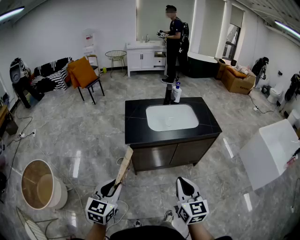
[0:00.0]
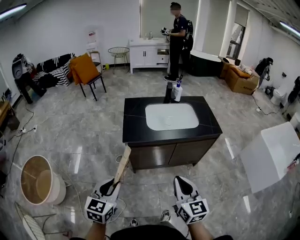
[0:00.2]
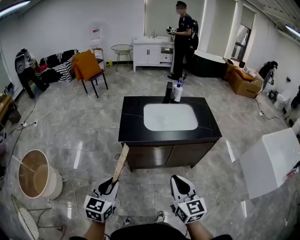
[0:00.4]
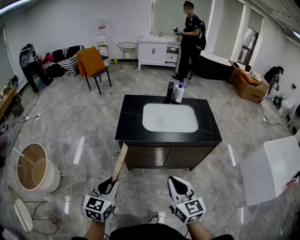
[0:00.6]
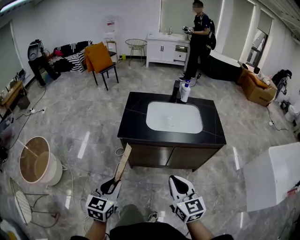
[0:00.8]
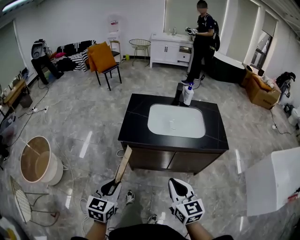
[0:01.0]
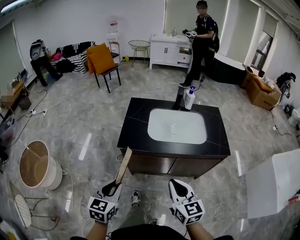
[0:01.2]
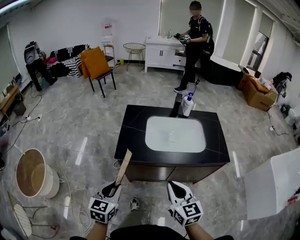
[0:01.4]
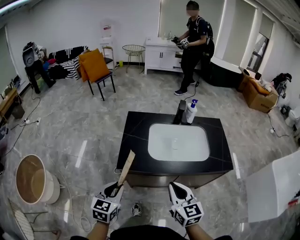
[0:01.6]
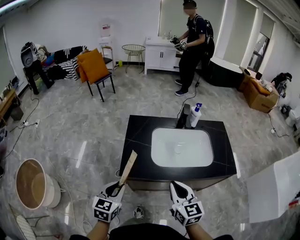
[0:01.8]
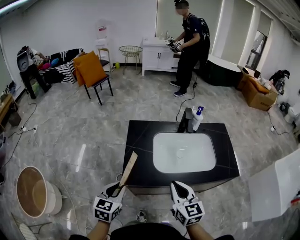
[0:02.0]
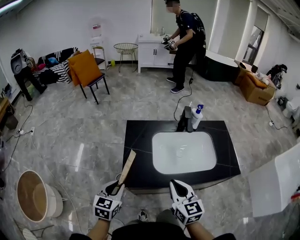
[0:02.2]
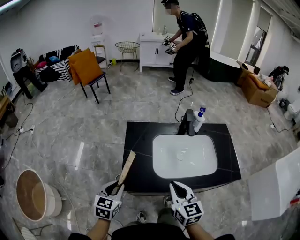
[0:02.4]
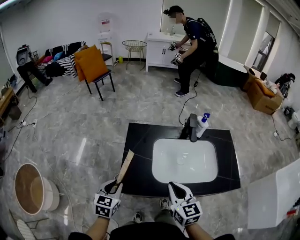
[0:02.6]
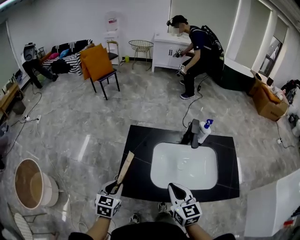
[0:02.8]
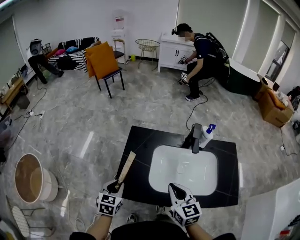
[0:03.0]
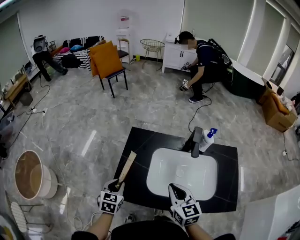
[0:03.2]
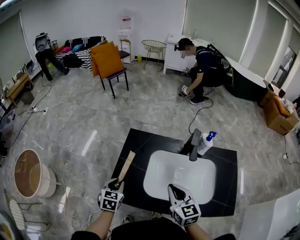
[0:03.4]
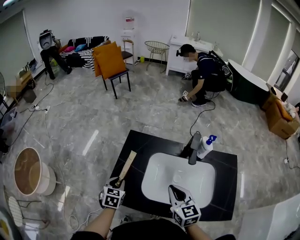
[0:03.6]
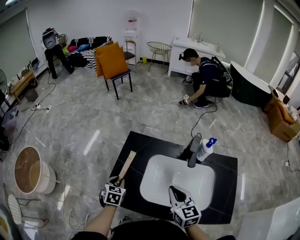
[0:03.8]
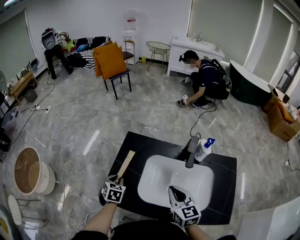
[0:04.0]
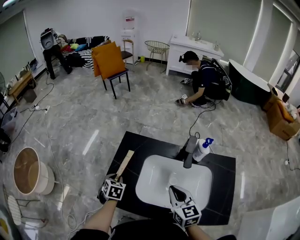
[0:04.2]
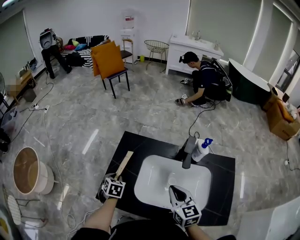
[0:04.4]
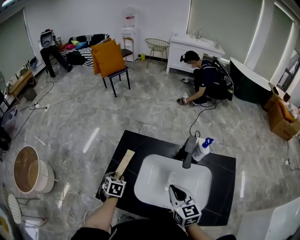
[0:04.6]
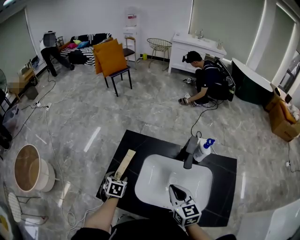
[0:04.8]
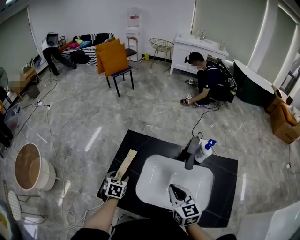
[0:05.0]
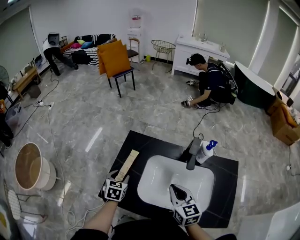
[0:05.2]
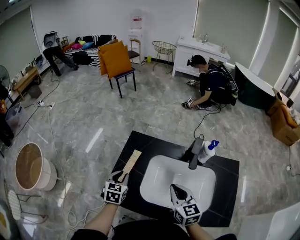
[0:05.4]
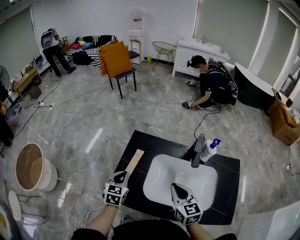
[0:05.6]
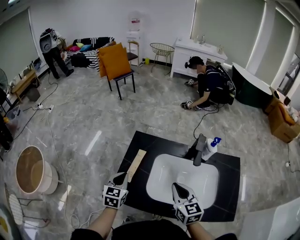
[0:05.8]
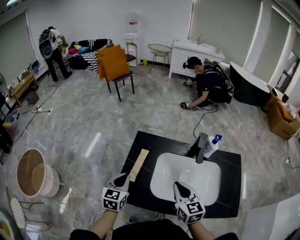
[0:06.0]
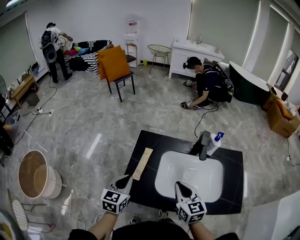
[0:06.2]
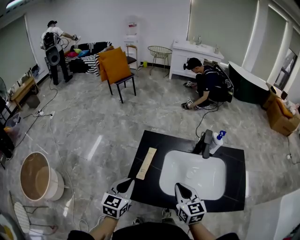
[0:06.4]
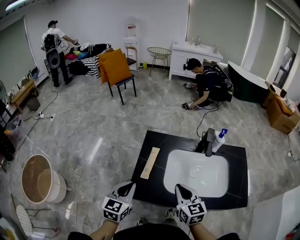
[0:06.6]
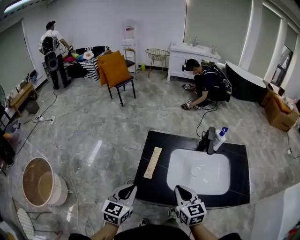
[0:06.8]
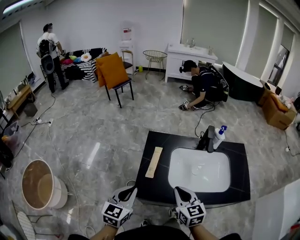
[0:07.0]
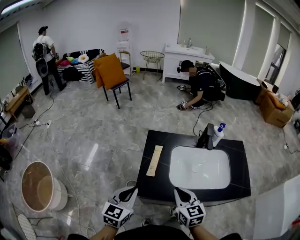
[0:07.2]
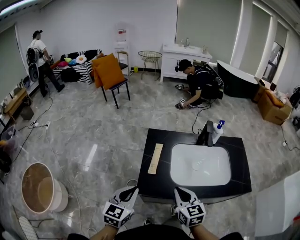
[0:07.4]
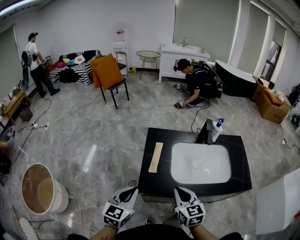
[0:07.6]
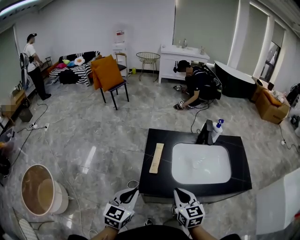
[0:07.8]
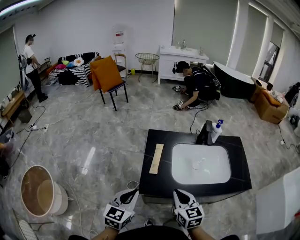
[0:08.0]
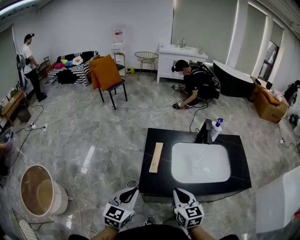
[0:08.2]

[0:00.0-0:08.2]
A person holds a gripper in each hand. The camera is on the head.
0:00.0 to 0:01.6: The grippers both shift forward by about 25 cm.
0:01.6 to 0:03.2: The right gripper heads forward, covering some 25 cm. Meanwhile the left gripper is displaced forward and downward by roughly 25 cm.
0:03.2 to 0:05.0: The right gripper heads to the right, covering about 5 cm; the left gripper is displaced forward, downward and to the right by some 10 cm, and opens up.
0:05.0 to 0:06.6: The left gripper moves upward, backward and to the left, about 20 cm, turns by some 30 degrees, and closes. Meanwhile the right gripper heads to the left and backward, covering approximately 15 cm.
0:06.6 to 0:08.2: The right gripper moves backward and to the left, approximately 10 cm; the left gripper shifts about 10 cm backward.

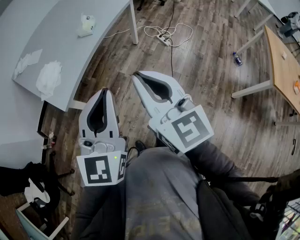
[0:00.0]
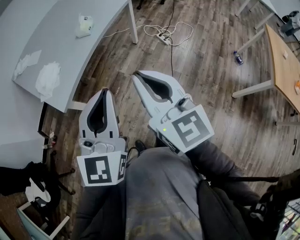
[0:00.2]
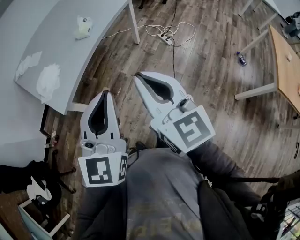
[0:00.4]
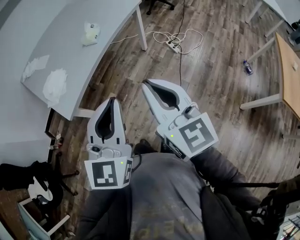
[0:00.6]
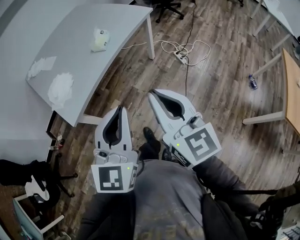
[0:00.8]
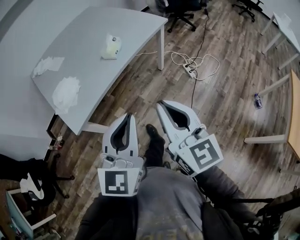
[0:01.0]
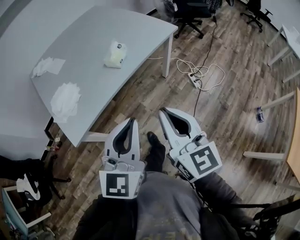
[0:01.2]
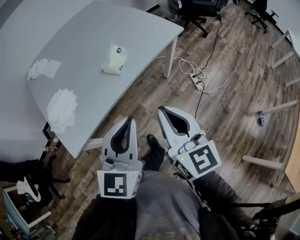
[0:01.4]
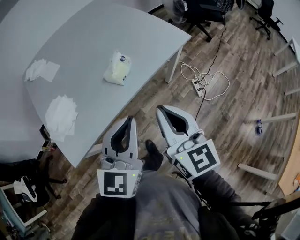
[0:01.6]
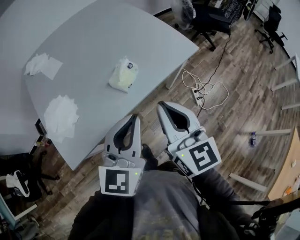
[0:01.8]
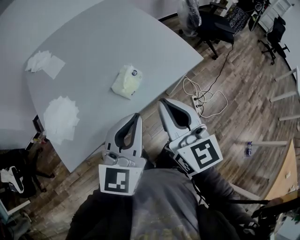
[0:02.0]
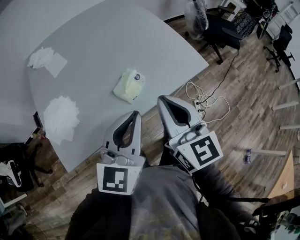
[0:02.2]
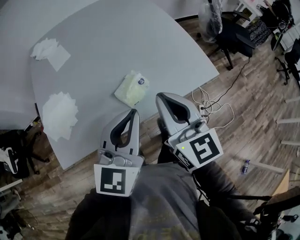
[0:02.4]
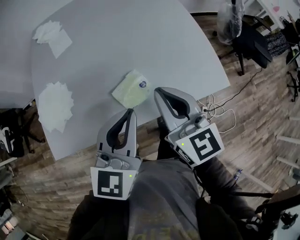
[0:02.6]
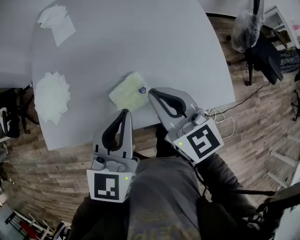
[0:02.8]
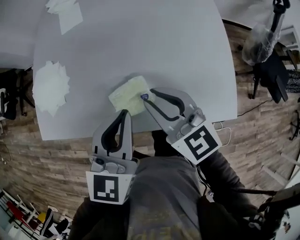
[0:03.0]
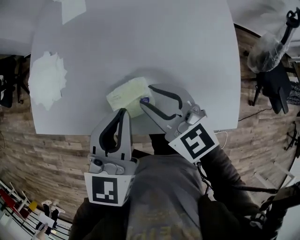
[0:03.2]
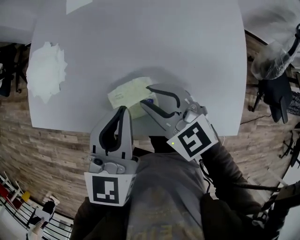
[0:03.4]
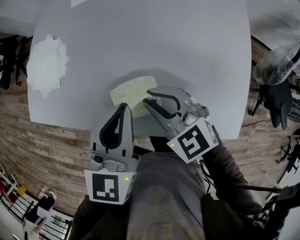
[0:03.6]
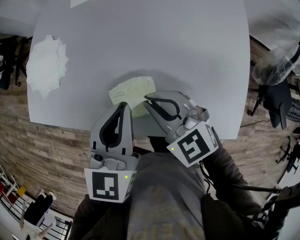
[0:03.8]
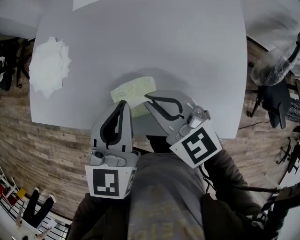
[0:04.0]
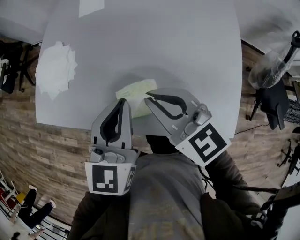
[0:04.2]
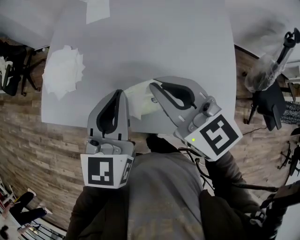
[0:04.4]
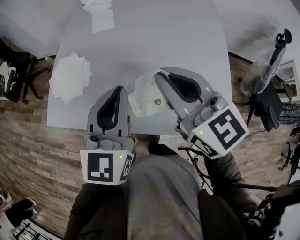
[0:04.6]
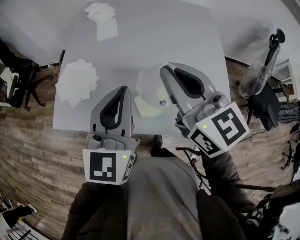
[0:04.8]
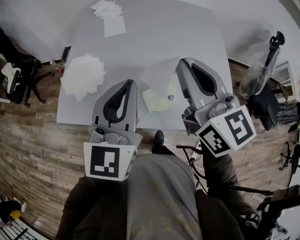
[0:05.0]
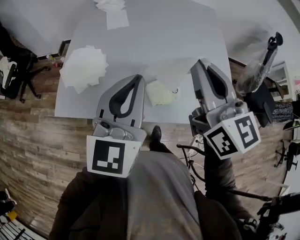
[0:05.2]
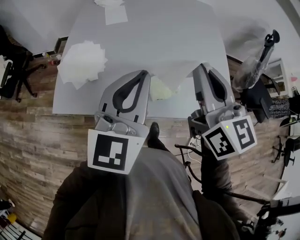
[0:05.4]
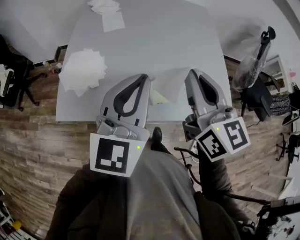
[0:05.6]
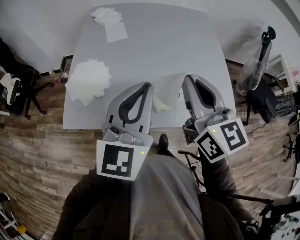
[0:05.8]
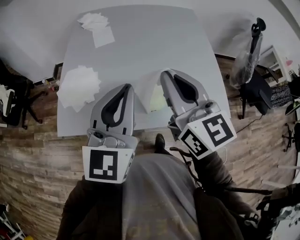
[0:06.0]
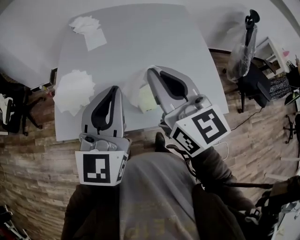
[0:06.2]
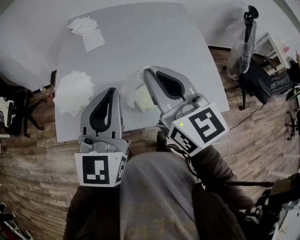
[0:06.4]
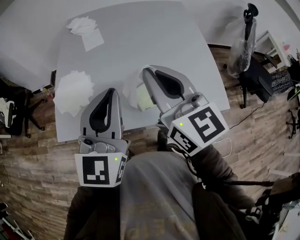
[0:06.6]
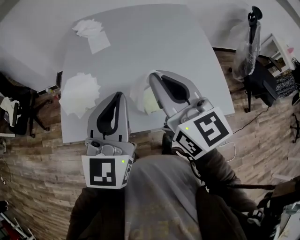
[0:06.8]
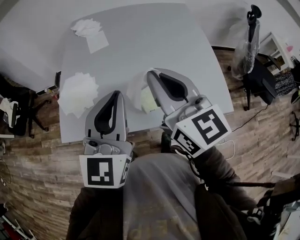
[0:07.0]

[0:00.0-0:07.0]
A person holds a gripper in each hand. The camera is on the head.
0:00.0 to 0:01.4: Both grippers travel together forward, approximately 30 cm.
0:01.4 to 0:02.8: The right gripper moves some 40 cm, and turns by roughly 50 degrees, while the left gripper moves approximately 35 cm, and turns by about 40 degrees.
0:02.8 to 0:04.2: The left gripper shifts by about 10 cm, and changes its angle by about 20 degrees. Meanwhile the right gripper travels downward and back again, some 10 cm each way, swivels approximately 30 degrees, and opens, then closes again.
0:04.2 to 0:05.6: Both grippers travel together upward, about 15 cm. The right gripper rotates some 40 degrees; the left gripper rotates some 30 degrees.
0:05.6 to 0:07.0: The grippers stay close to where they were, moving slightly.

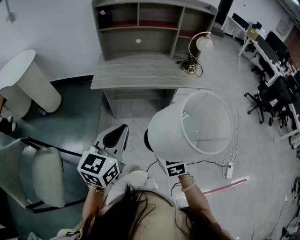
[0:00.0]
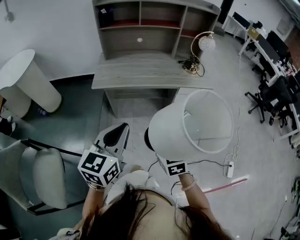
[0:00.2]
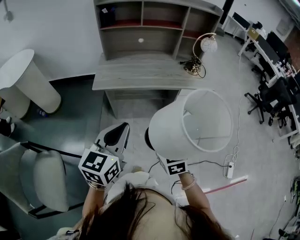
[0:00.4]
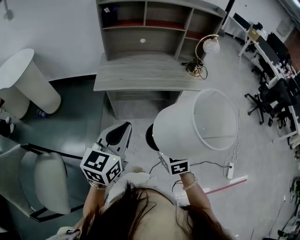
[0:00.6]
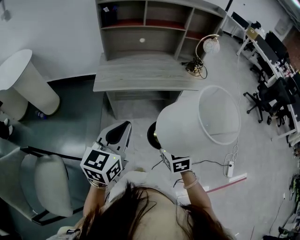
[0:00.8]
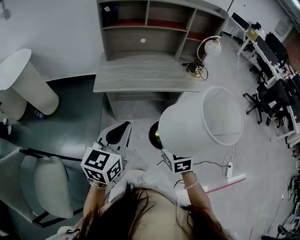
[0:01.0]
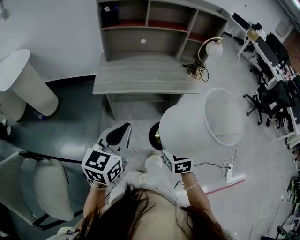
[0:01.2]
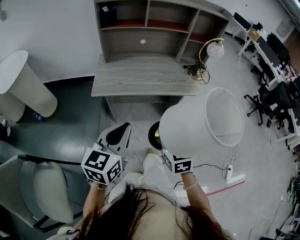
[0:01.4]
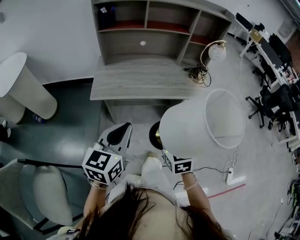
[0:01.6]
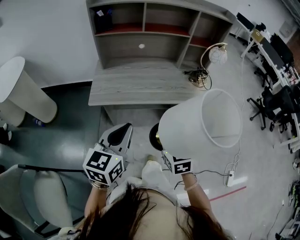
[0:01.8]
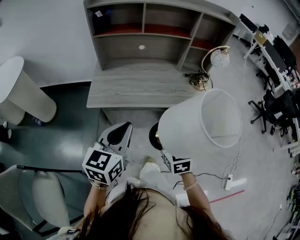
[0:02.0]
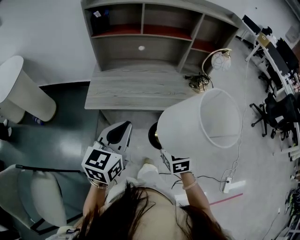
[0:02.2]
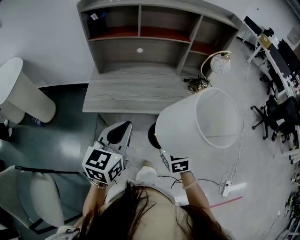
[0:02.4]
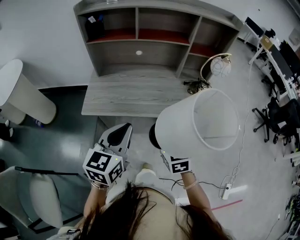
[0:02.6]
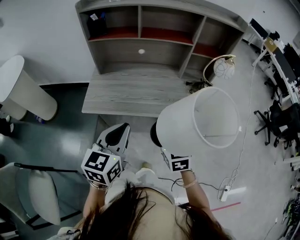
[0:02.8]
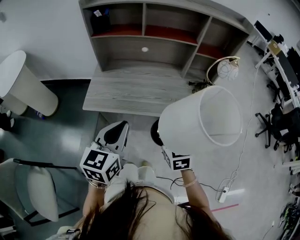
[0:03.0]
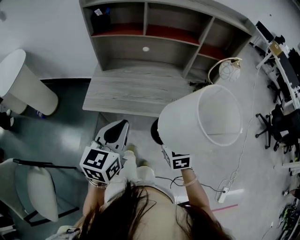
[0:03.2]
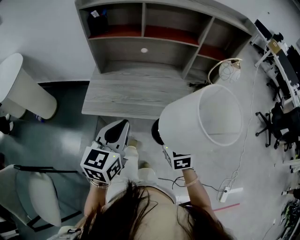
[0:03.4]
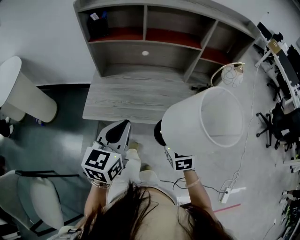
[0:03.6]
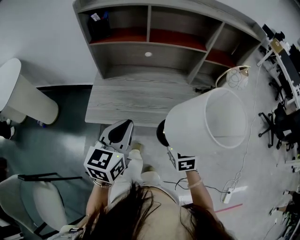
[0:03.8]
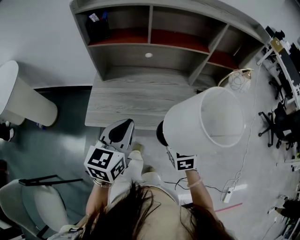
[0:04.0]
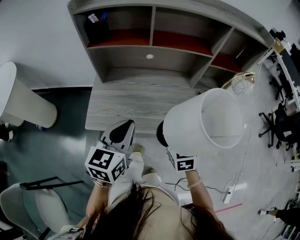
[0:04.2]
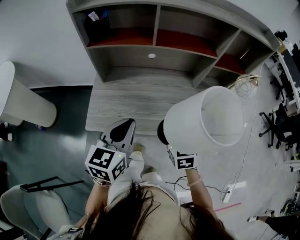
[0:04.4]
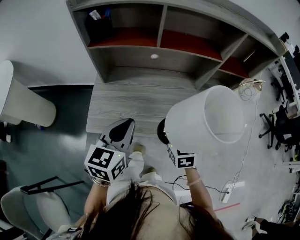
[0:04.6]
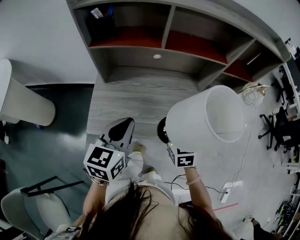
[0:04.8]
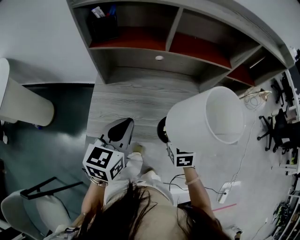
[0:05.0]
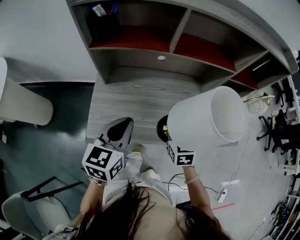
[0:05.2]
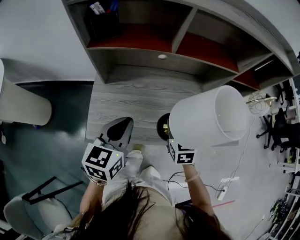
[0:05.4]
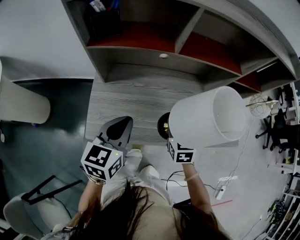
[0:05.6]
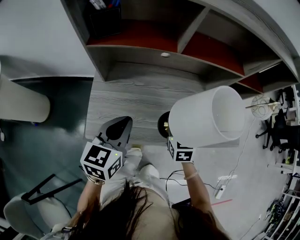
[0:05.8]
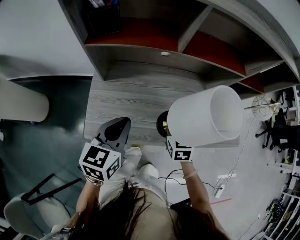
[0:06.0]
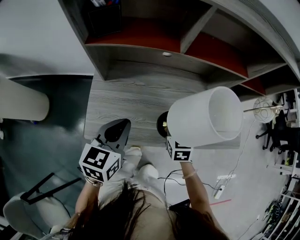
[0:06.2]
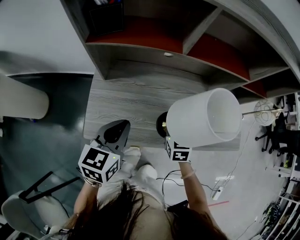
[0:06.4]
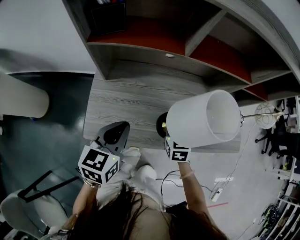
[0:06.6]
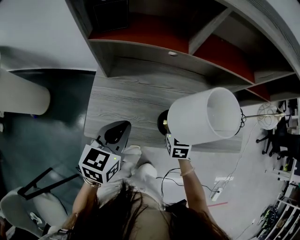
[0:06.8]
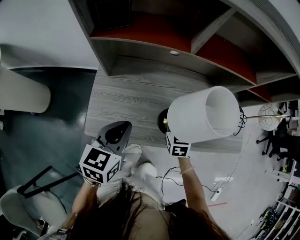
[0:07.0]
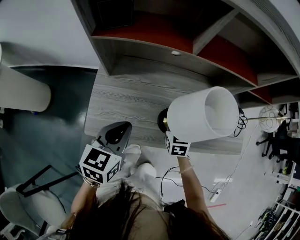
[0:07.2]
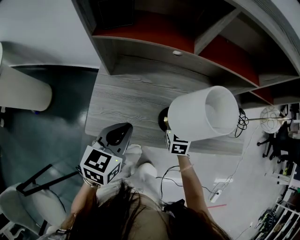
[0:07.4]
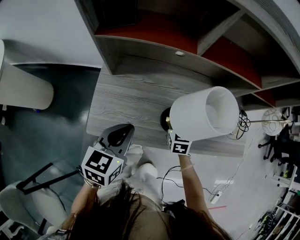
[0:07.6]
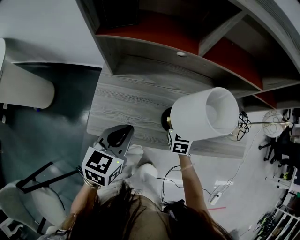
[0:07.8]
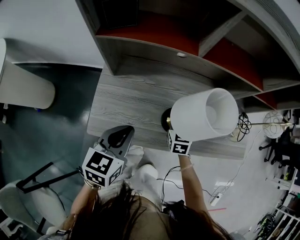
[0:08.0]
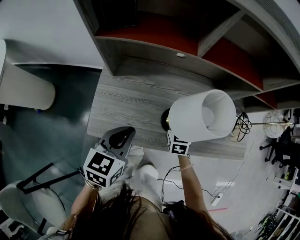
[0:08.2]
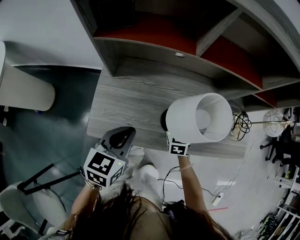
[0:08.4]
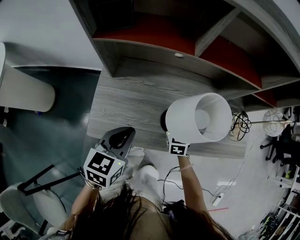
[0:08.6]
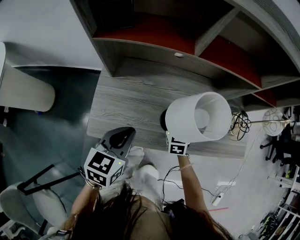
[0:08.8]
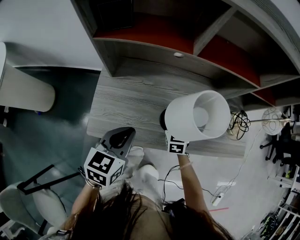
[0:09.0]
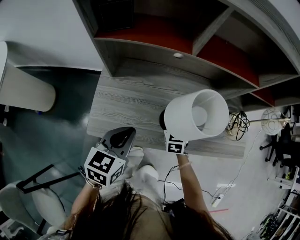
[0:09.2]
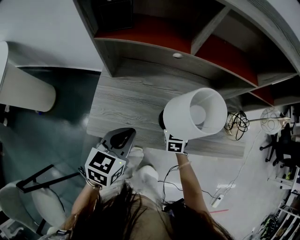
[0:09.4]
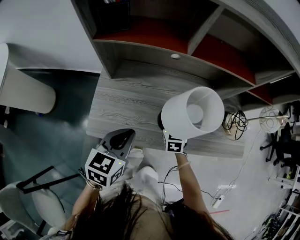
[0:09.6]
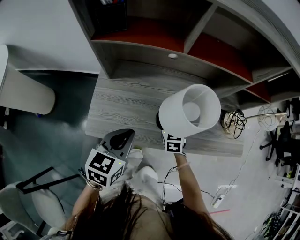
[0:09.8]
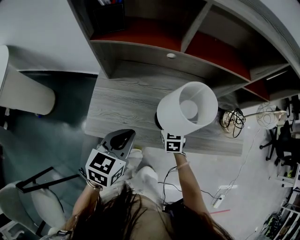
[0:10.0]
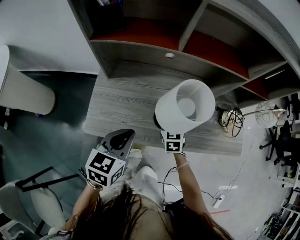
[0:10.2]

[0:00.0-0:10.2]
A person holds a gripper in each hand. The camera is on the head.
0:00.0 to 0:01.4: The right gripper is displaced forward by approximately 10 cm, while the left gripper goes about 15 cm forward and to the left.
0:01.4 to 0:03.0: Both grippers move forward, approximately 20 cm.
0:03.0 to 0:04.4: Both grippers move forward, approximately 15 cm.
0:04.4 to 0:05.8: The right gripper travels forward and downward by approximately 15 cm. The left gripper heads forward, to the left and downward, covering about 15 cm.
0:05.8 to 0:07.2: The right gripper moves downward, approximately 5 cm.
0:07.2 to 0:10.2: The grippers stay close to where they were, moving slightly.
